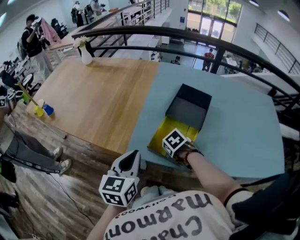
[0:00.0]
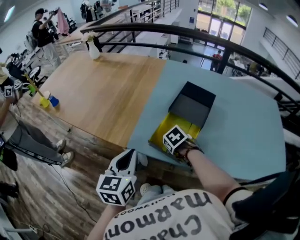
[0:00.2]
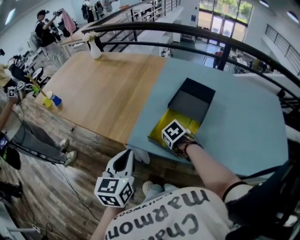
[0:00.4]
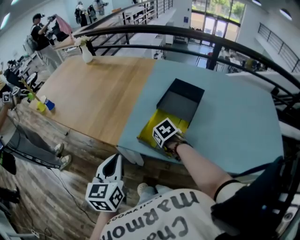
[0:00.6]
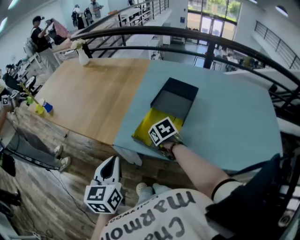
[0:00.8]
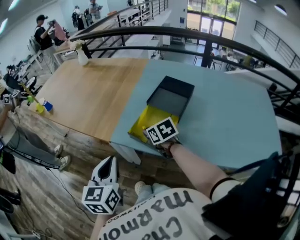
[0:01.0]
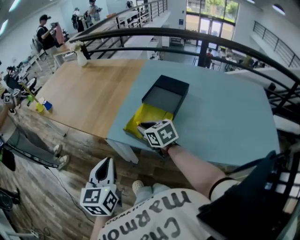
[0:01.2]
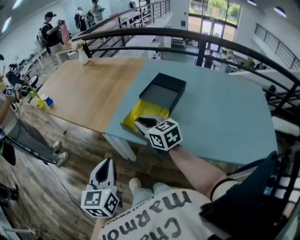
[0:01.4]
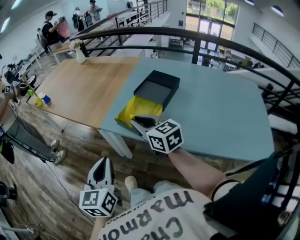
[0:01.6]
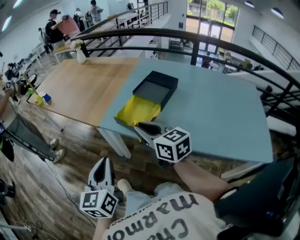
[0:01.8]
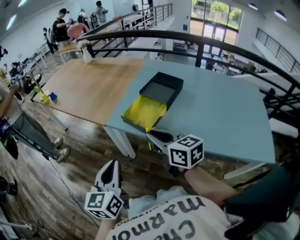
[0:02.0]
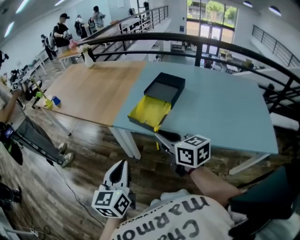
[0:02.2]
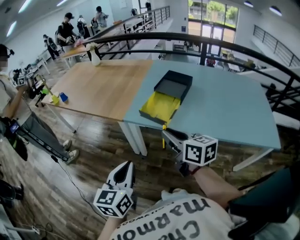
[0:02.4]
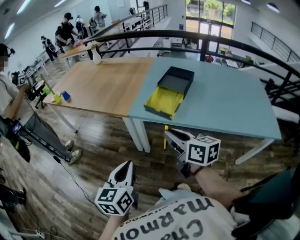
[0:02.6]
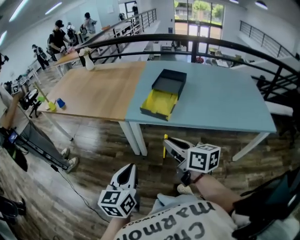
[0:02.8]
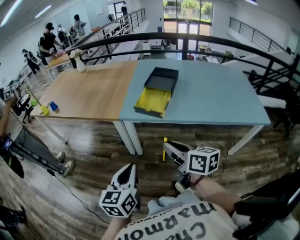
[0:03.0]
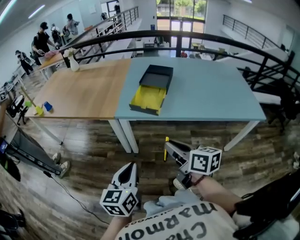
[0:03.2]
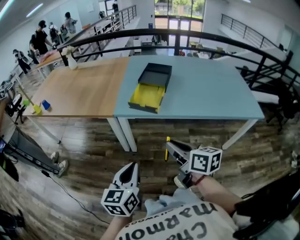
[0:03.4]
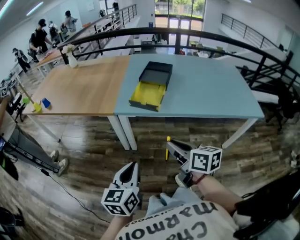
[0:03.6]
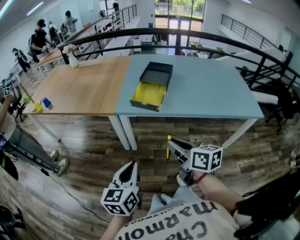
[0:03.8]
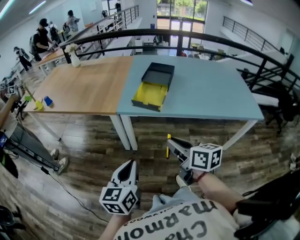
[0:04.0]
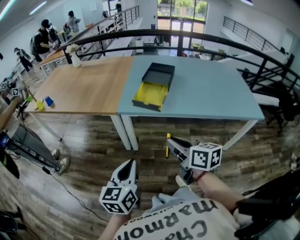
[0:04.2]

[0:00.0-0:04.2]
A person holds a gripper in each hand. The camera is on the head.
0:00.0 to 0:01.4: The left gripper ends up about 15 cm from where it was. Meanwhile the right gripper moves upward, some 15 cm, and points its fingers approximately 60 degrees further upward.
0:01.4 to 0:02.8: The left gripper travels backward and to the left by about 15 cm. The right gripper heads backward, covering some 25 cm, and rotates some 30 degrees.
0:02.8 to 0:04.2: The right gripper travels backward by some 5 cm.

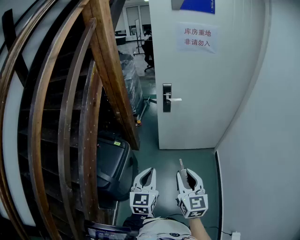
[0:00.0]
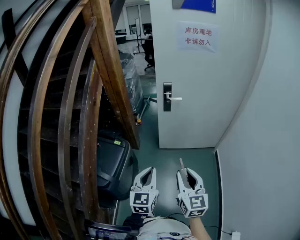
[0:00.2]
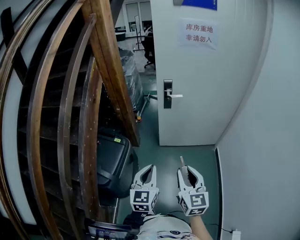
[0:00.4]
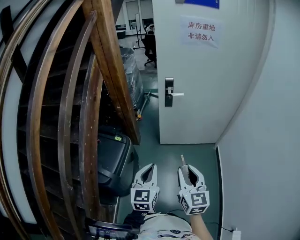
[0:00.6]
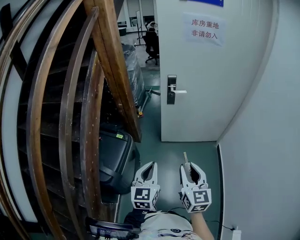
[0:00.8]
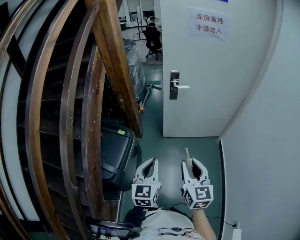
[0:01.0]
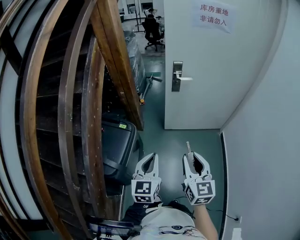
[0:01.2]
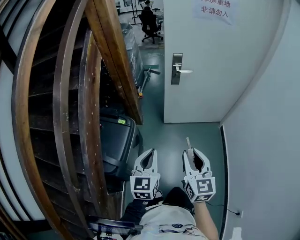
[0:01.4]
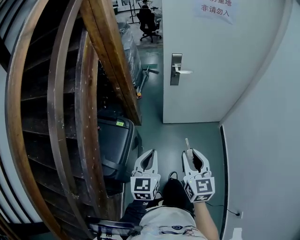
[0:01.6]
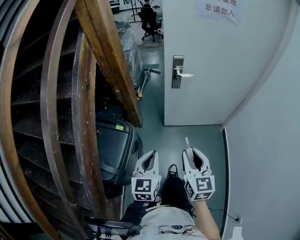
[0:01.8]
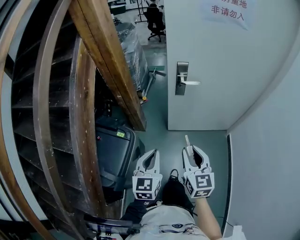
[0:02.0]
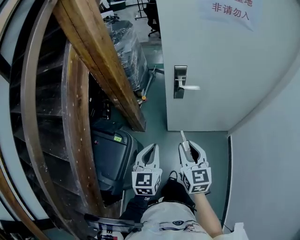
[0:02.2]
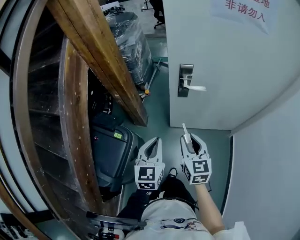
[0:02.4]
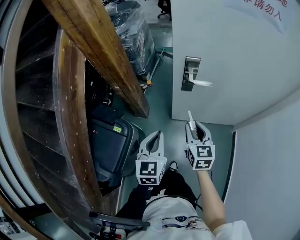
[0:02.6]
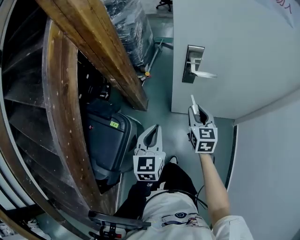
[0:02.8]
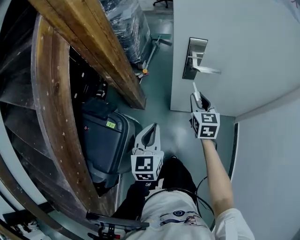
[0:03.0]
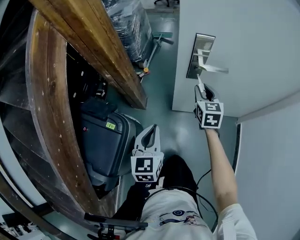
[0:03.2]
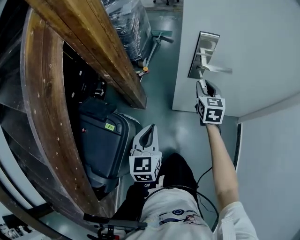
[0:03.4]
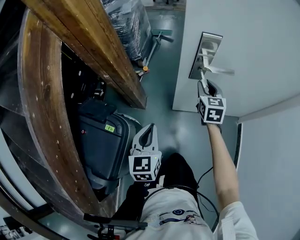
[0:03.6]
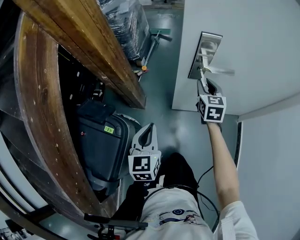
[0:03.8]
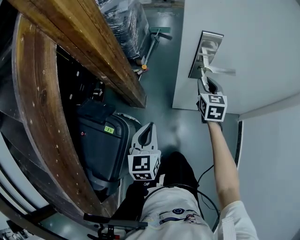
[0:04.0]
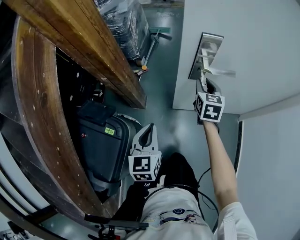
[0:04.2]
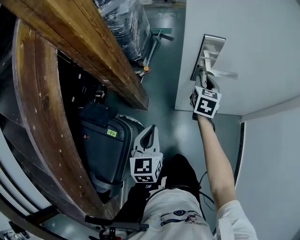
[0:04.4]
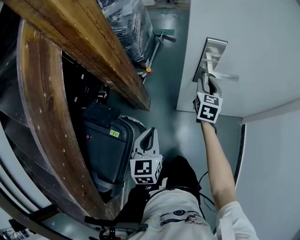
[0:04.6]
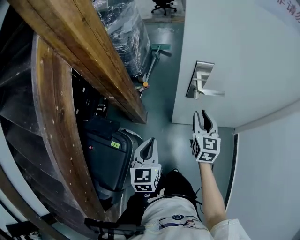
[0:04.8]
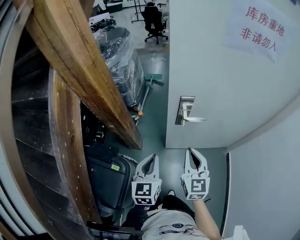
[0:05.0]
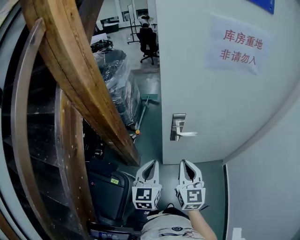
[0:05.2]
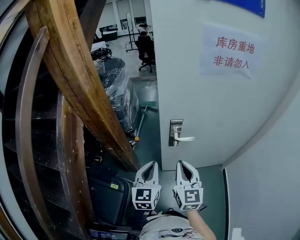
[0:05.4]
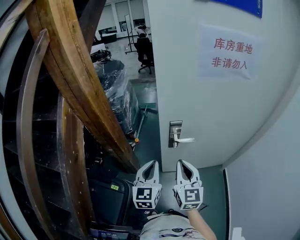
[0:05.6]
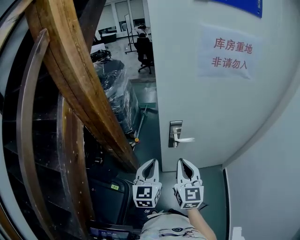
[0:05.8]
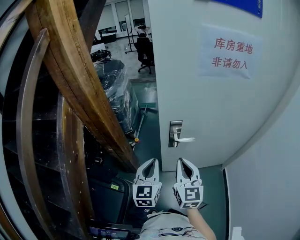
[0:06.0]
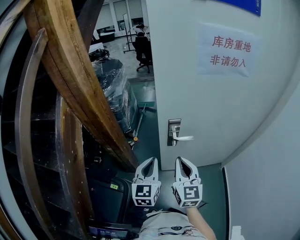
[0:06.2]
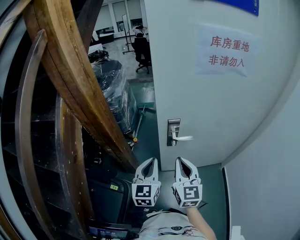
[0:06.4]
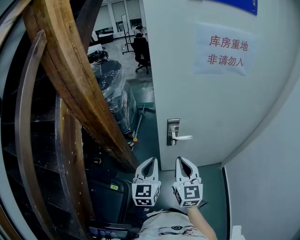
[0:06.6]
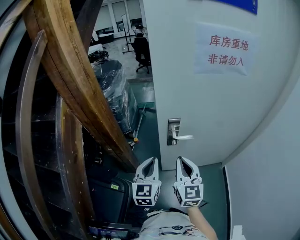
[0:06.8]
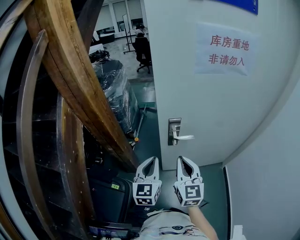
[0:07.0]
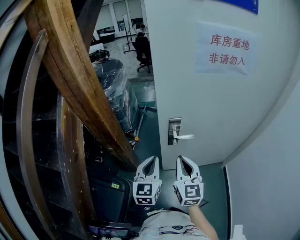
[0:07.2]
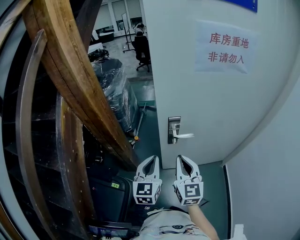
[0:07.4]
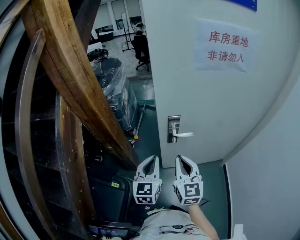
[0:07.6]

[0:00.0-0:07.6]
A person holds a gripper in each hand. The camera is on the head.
0:00.0 to 0:01.6: The left gripper shifts about 10 cm to the left and forward. The right gripper goes about 10 cm forward and to the left.
0:01.6 to 0:03.0: The left gripper shifts approximately 30 cm forward, while the right gripper is displaced forward by approximately 50 cm.
0:03.0 to 0:04.6: The left gripper moves downward and to the left, approximately 10 cm, while the right gripper shifts about 10 cm forward.
0:04.6 to 0:06.0: The right gripper moves upward and backward, some 35 cm, rotates roughly 20 degrees, and closes up, while the left gripper goes approximately 25 cm upward.
0:06.0 to 0:07.6: Both grippers stay put.

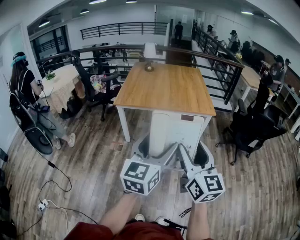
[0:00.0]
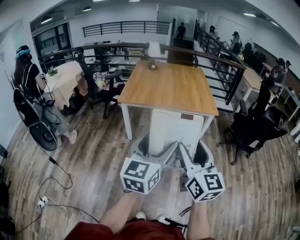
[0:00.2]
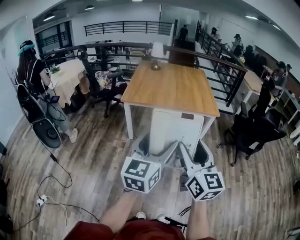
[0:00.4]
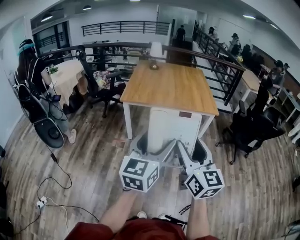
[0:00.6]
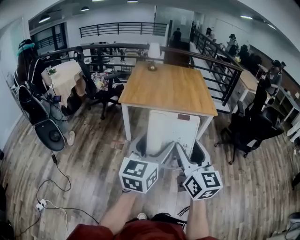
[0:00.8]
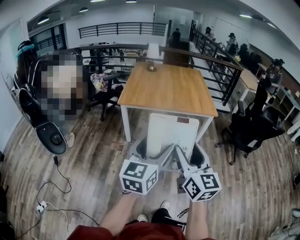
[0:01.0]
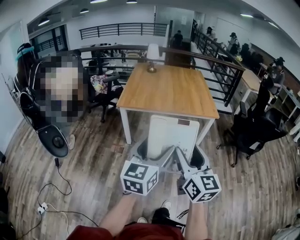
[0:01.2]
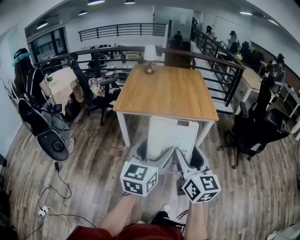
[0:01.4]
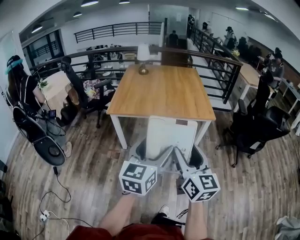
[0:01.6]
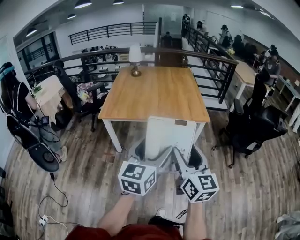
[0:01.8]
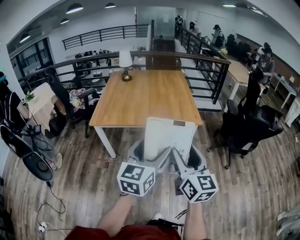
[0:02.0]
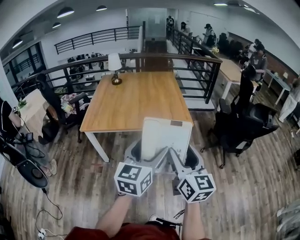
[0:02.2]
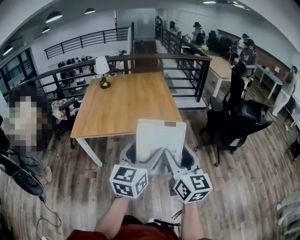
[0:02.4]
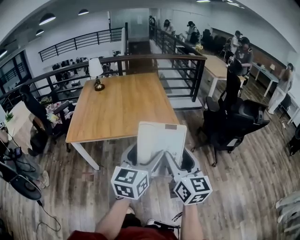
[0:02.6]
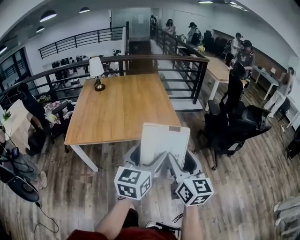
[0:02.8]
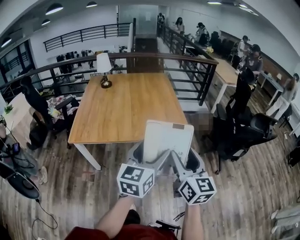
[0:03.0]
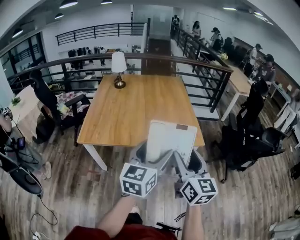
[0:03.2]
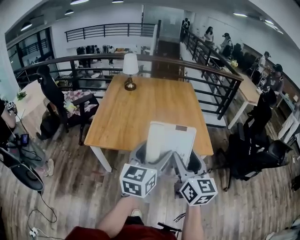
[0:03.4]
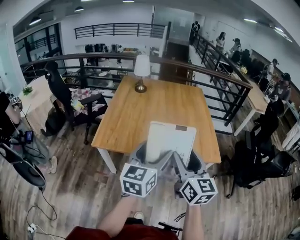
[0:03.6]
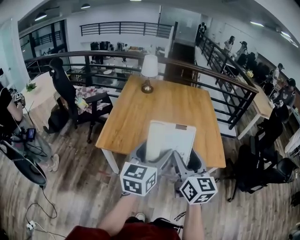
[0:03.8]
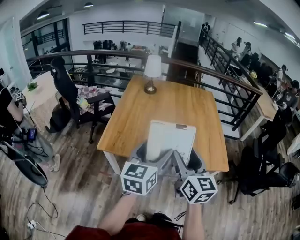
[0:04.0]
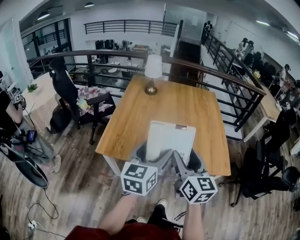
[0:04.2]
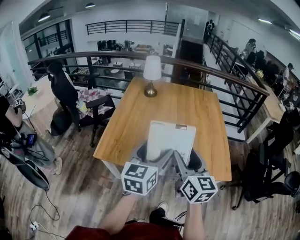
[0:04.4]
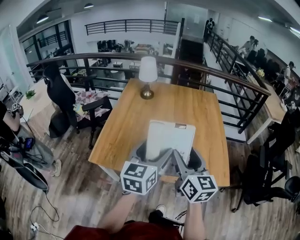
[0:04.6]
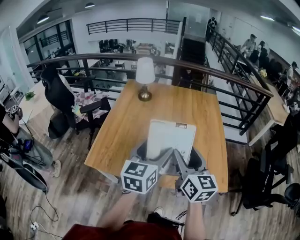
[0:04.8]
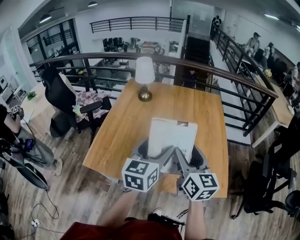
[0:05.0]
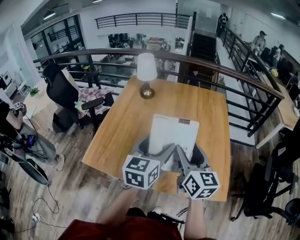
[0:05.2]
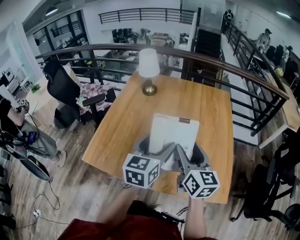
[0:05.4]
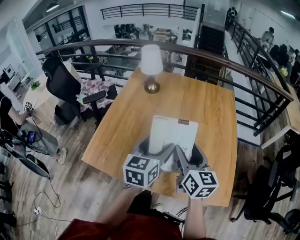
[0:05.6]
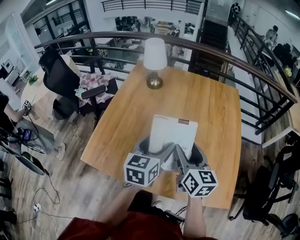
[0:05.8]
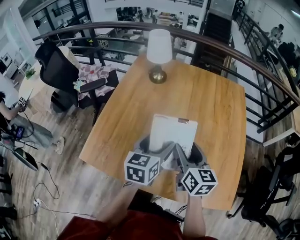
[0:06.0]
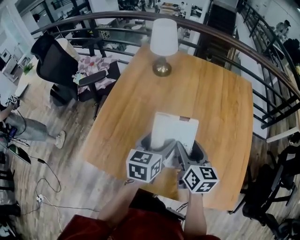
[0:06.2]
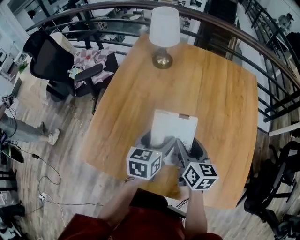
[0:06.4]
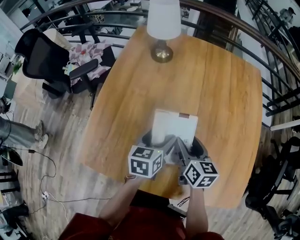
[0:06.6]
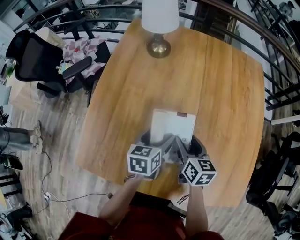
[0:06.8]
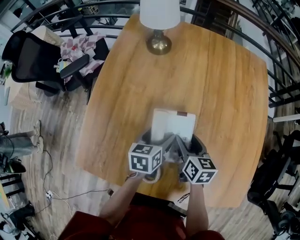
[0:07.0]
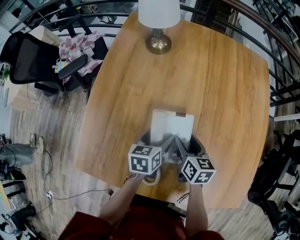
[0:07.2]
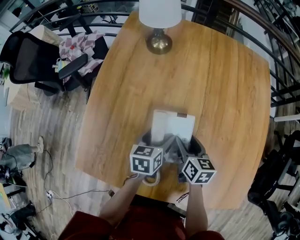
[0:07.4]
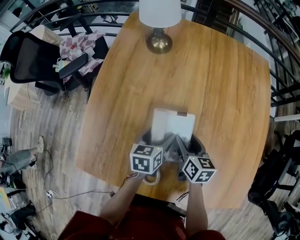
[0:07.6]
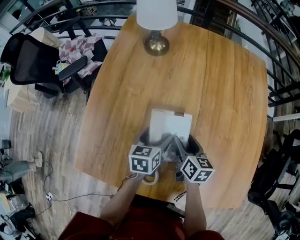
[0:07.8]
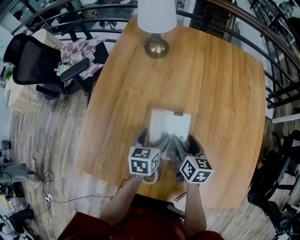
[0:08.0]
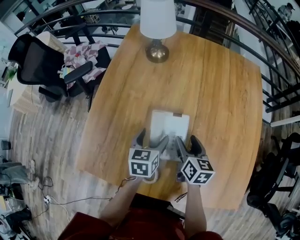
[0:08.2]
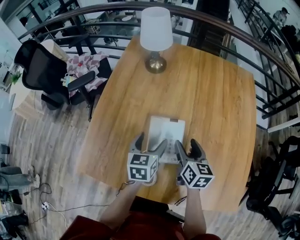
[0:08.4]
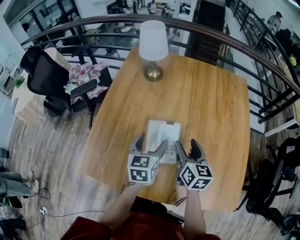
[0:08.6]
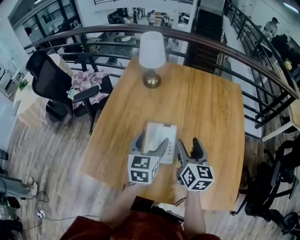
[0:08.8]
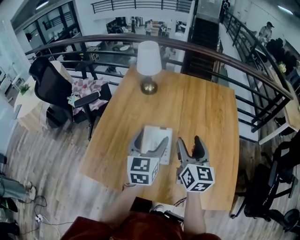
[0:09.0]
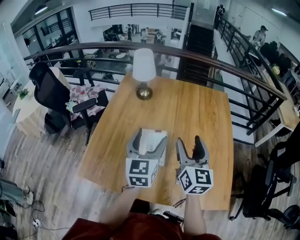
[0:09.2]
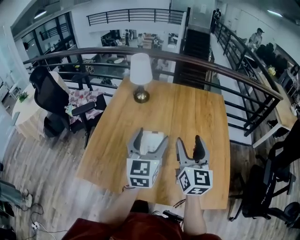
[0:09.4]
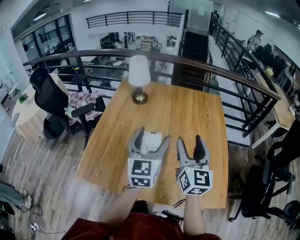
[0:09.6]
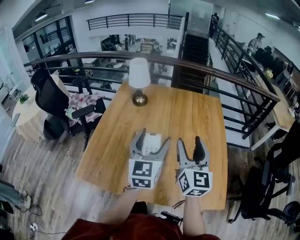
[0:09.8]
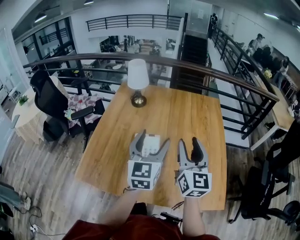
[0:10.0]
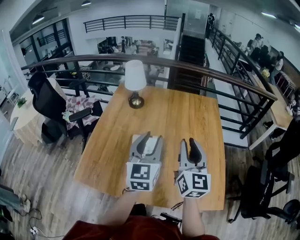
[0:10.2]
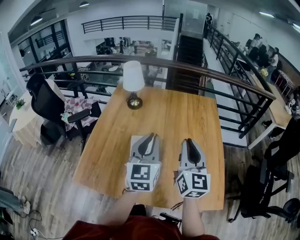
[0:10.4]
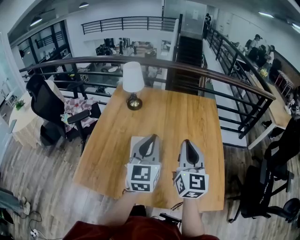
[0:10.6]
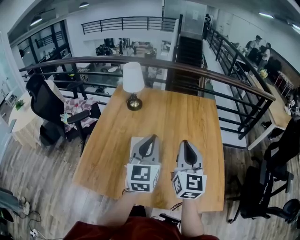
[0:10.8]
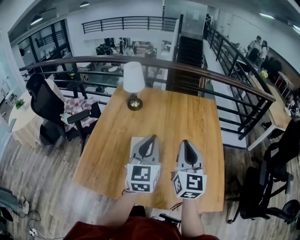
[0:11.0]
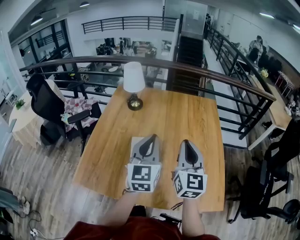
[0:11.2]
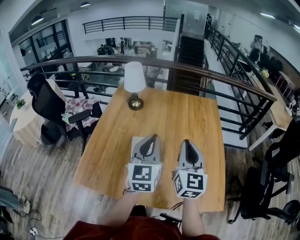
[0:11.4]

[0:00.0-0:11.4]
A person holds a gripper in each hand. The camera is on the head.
0:00.0 to 0:01.4: Both grippers move forward, approximately 5 cm.
0:01.4 to 0:02.8: The two grippers go some 30 cm forward and to the right.
0:02.8 to 0:04.2: The grippers both shift to the left and forward by about 40 cm.
0:04.2 to 0:05.6: The grippers both shift forward and to the right by approximately 30 cm.
0:05.6 to 0:07.2: The grippers both shift downward and forward by approximately 30 cm. The right gripper rotates about 30 degrees, while the left gripper changes its angle by some 30 degrees.
0:07.2 to 0:08.6: Both grippers travel together upward, approximately 15 cm. The left gripper turns by roughly 20 degrees.
0:08.6 to 0:10.0: The left gripper moves upward, to the right and backward, approximately 25 cm, and rotates some 30 degrees. The right gripper travels upward, backward and to the right by about 25 cm, and swivels roughly 30 degrees.
0:10.0 to 0:11.4: The right gripper closes up; the left gripper closes its fingers.
